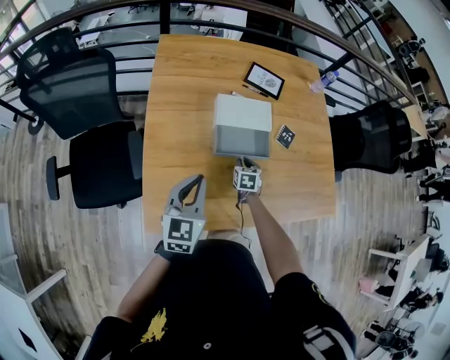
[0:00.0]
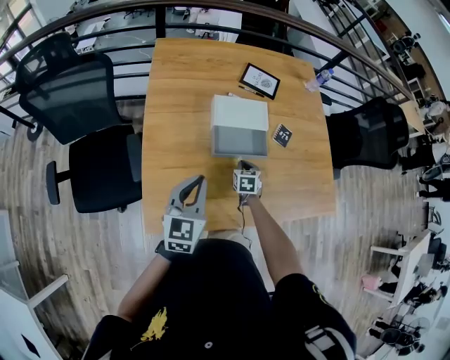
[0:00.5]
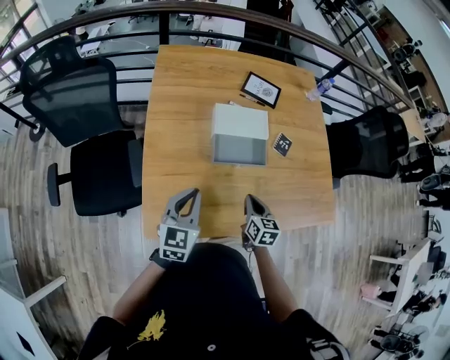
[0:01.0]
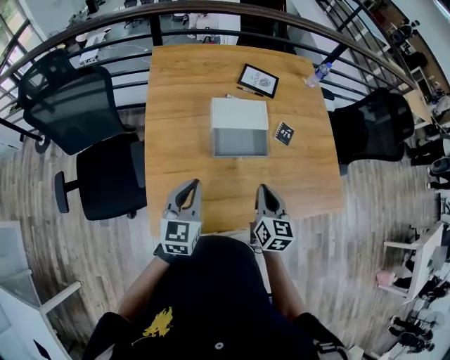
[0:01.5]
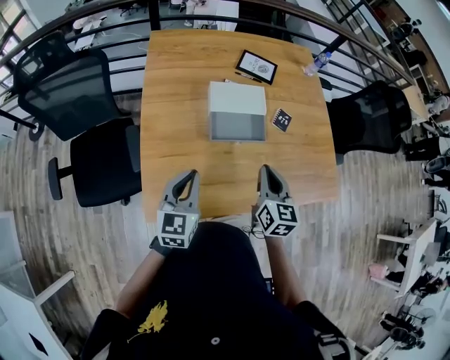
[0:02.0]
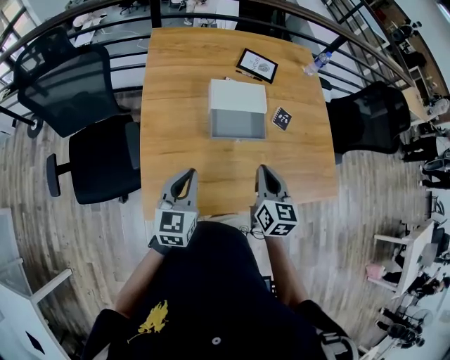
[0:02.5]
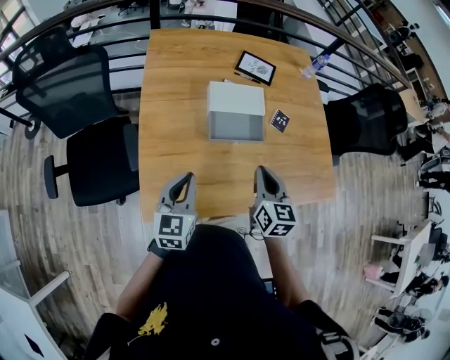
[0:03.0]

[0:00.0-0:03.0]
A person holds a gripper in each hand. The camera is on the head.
0.0 to 1.5 s: The right gripper goes about 25 cm upward and backward, and turns by about 30 degrees.
1.5 to 3.0 s: The grippers make only small movements.

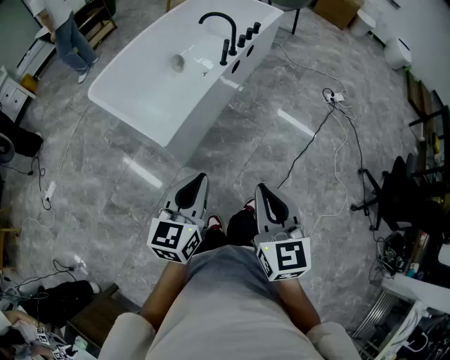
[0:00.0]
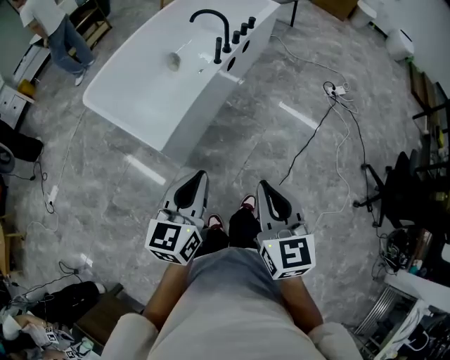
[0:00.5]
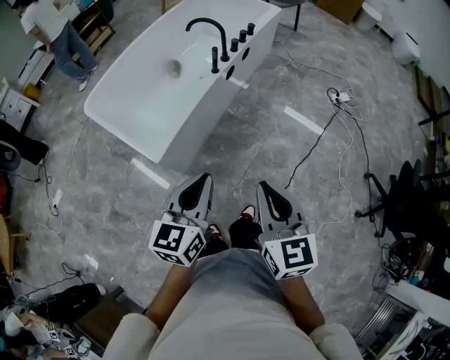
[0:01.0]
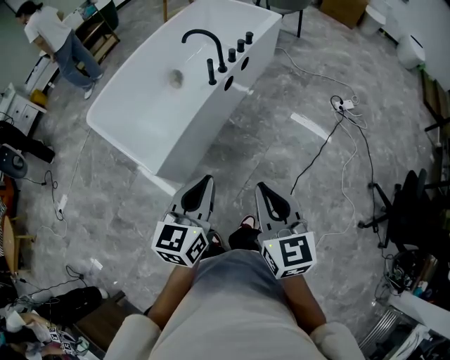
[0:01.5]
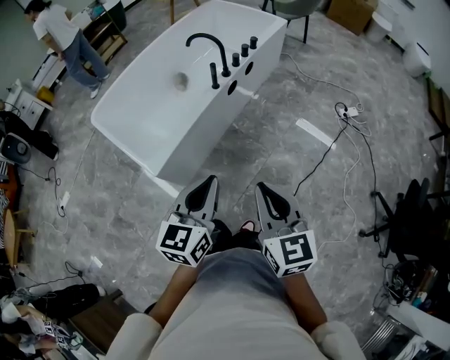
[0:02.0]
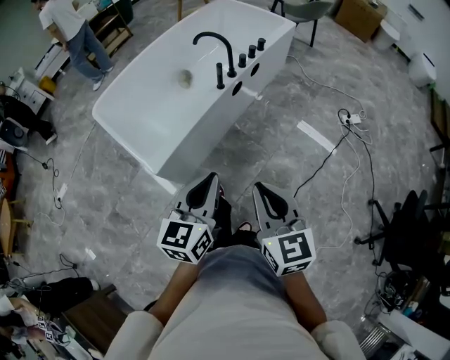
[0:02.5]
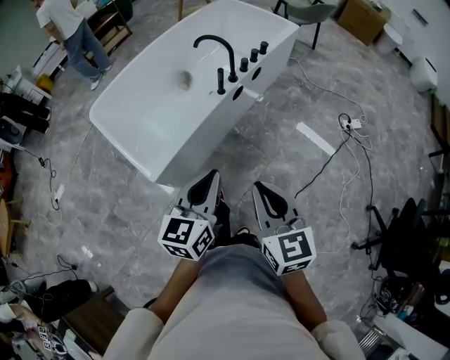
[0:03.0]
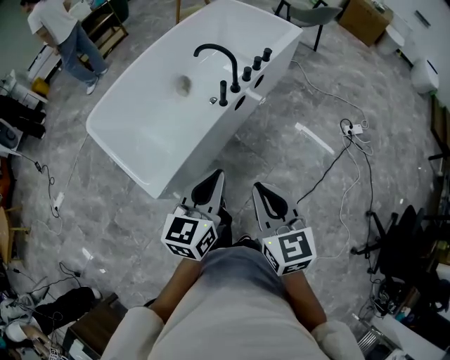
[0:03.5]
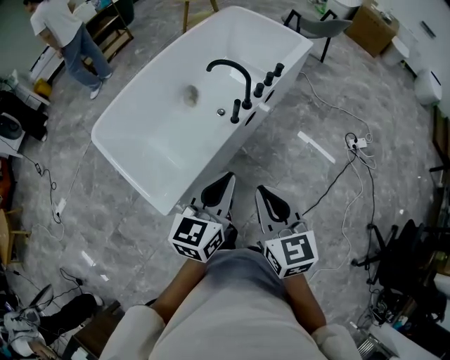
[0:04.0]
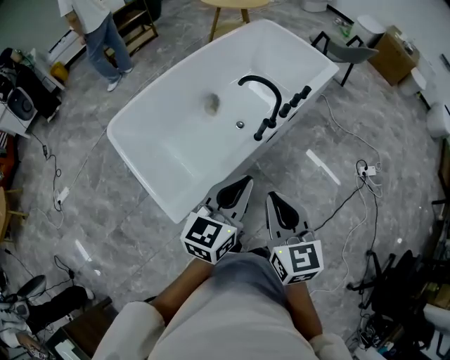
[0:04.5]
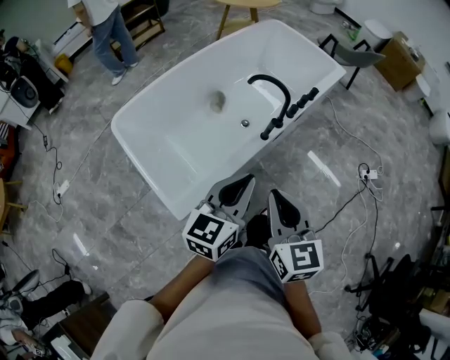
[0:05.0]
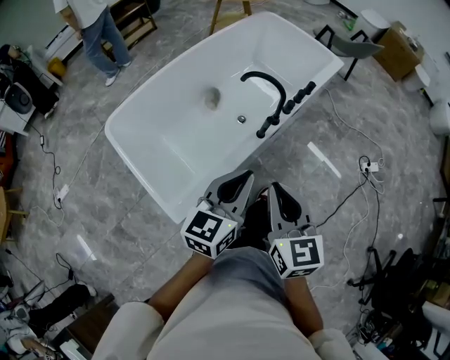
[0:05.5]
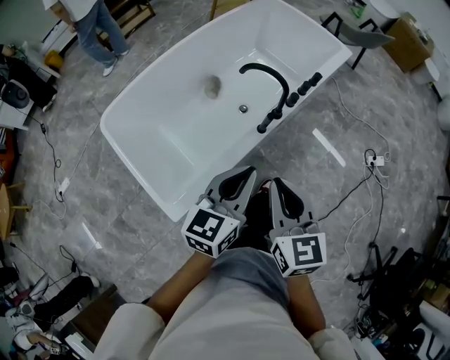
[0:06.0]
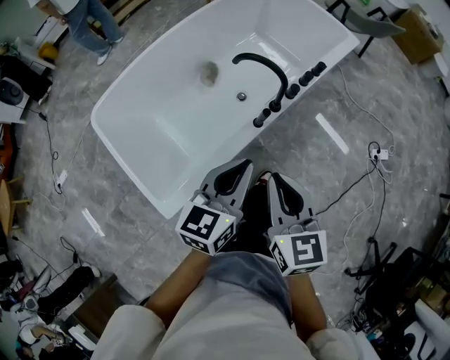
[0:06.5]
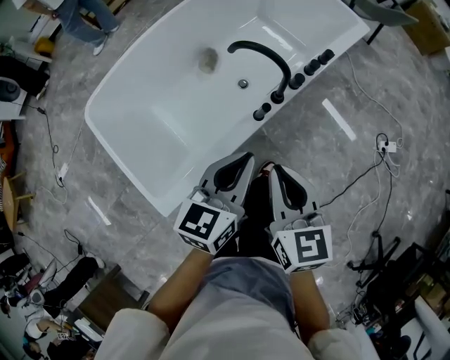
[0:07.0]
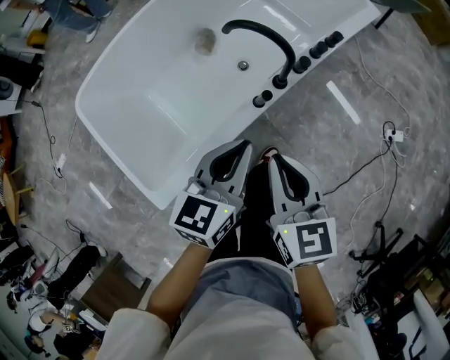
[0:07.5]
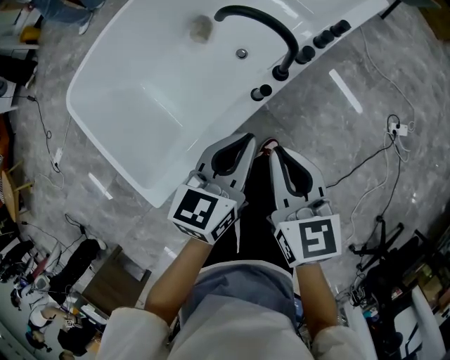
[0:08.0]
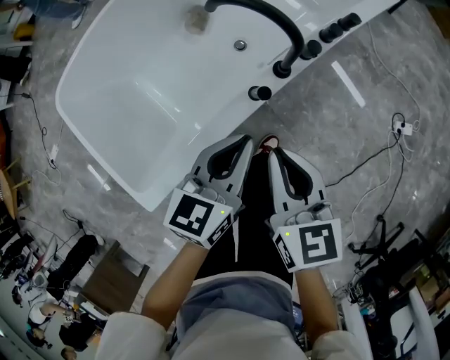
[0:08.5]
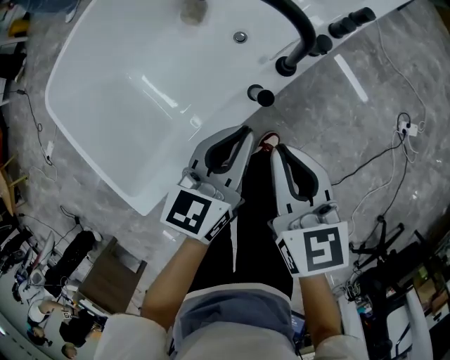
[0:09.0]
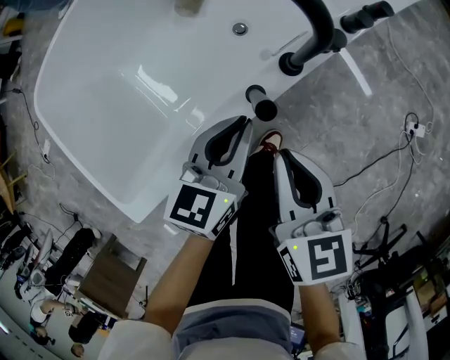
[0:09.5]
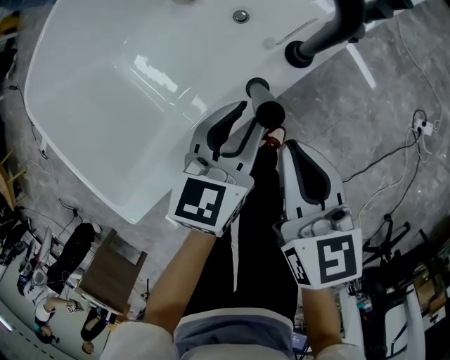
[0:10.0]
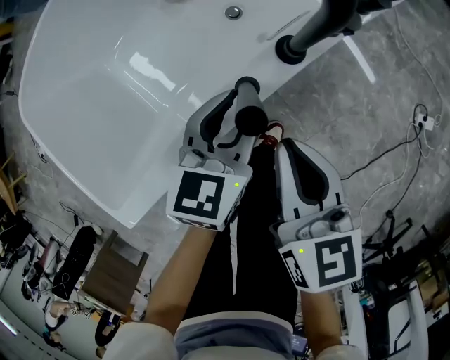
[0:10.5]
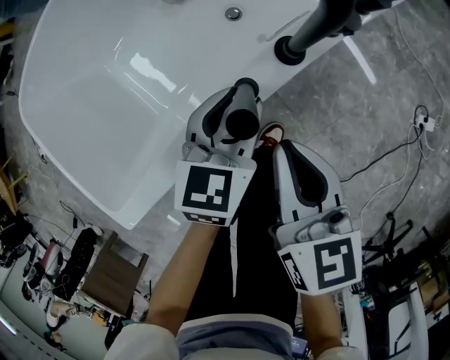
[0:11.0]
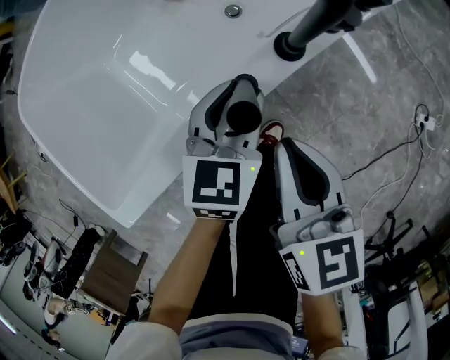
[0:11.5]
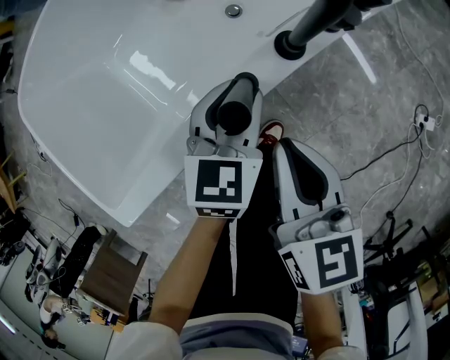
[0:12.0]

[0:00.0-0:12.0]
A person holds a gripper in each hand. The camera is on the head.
0.0 to 2.0 s: Both grippers travel together forward and to the right, approximately 20 cm.
2.0 to 4.0 s: The grippers both shift forward by roughly 25 cm.
4.0 to 6.0 s: The right gripper goes some 15 cm forward and to the left. Meanwhile the left gripper travels forward by about 10 cm.
6.0 to 8.0 s: Both grippers move downward and forward, approximately 20 cm.
8.0 to 10.0 s: Both grippers travel together downward, about 20 cm. The left gripper opens.
10.0 to 12.0 s: There are only small adjustments of the grippers.

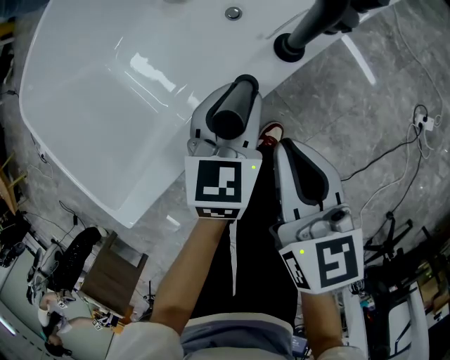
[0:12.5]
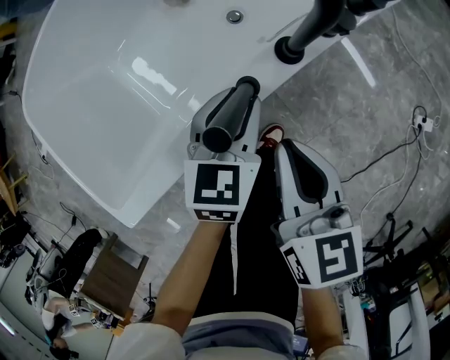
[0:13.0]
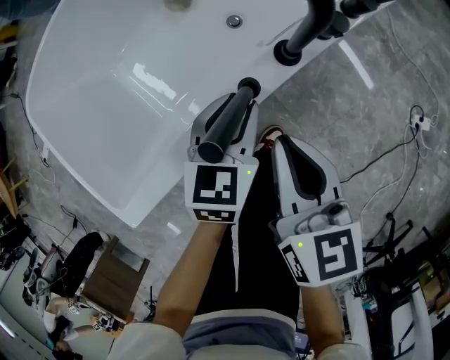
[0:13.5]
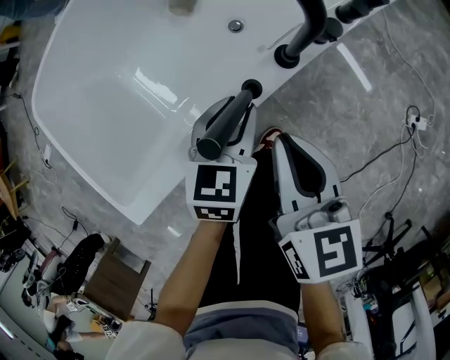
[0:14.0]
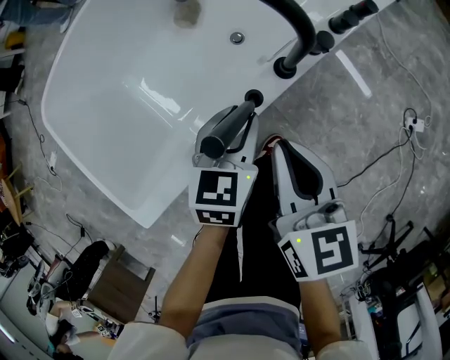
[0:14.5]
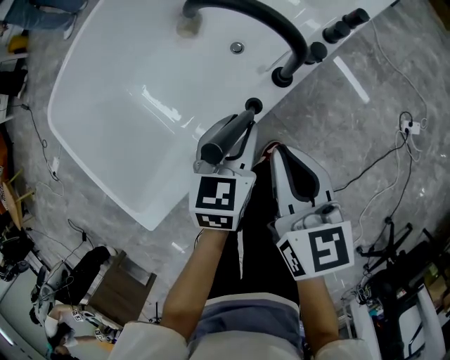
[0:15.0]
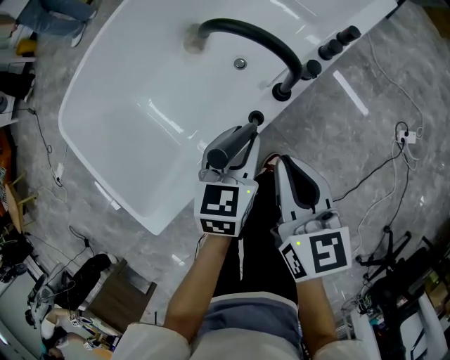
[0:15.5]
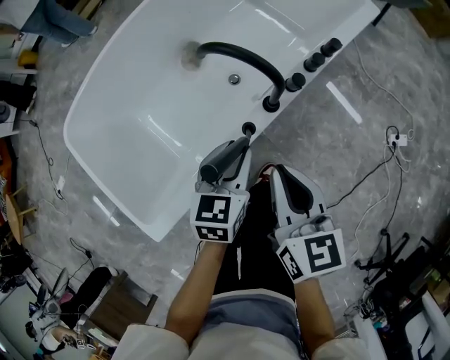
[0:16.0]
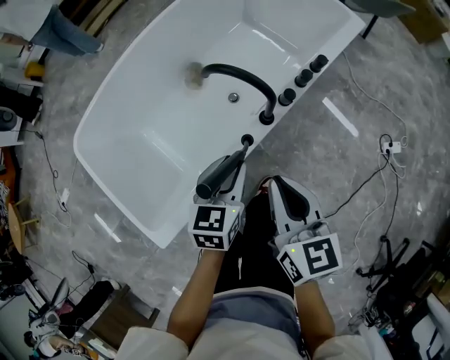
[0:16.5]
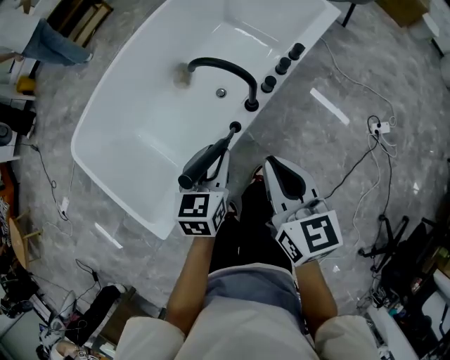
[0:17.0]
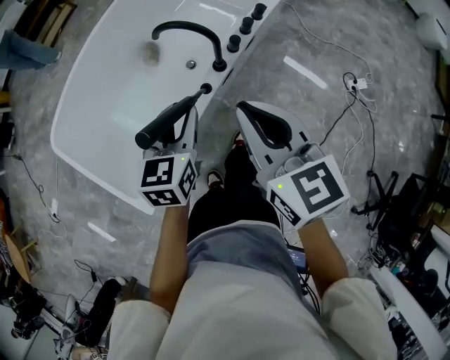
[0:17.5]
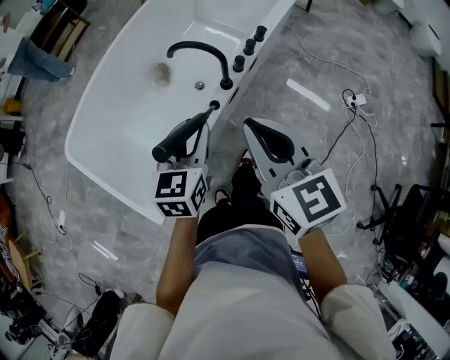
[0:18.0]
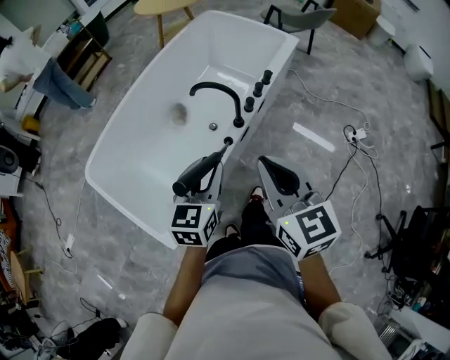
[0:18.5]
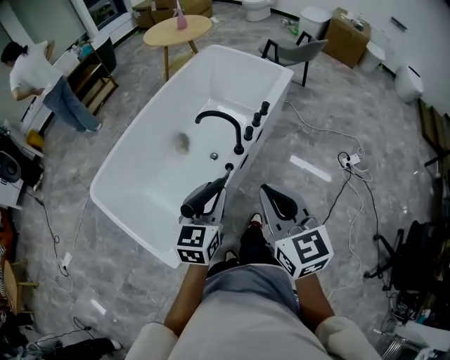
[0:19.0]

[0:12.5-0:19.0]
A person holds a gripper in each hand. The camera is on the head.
12.5 to 14.5 s: The grippers both shift upward by roughly 10 cm.
14.5 to 17.0 s: Both grippers travel together upward, roughly 20 cm.
17.0 to 19.0 s: The two grippers go roughly 20 cm upward and backward.

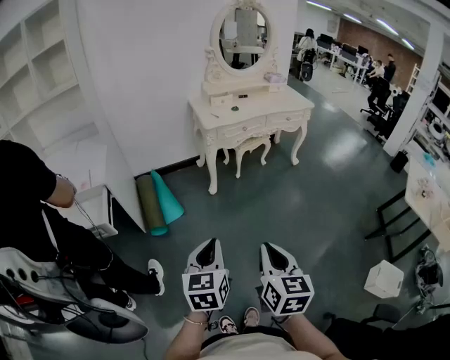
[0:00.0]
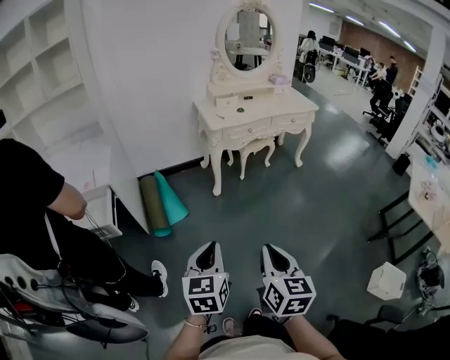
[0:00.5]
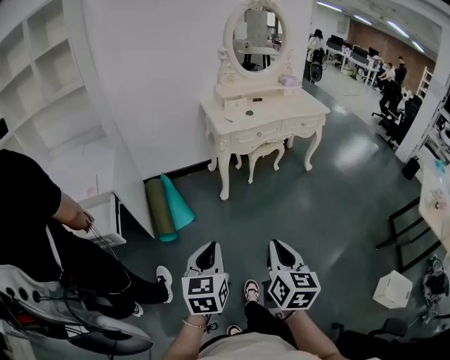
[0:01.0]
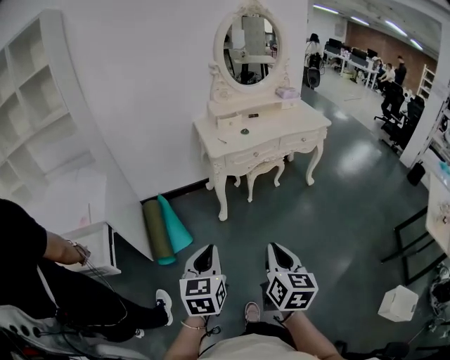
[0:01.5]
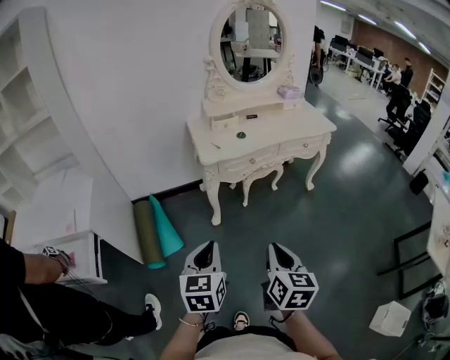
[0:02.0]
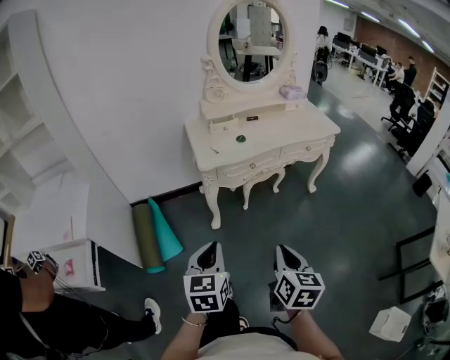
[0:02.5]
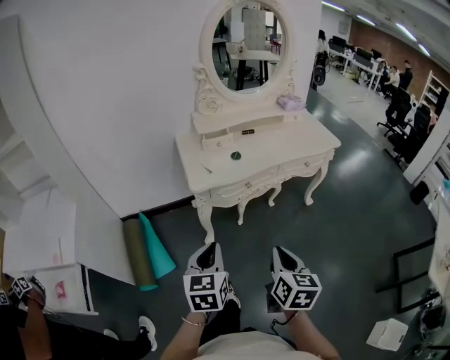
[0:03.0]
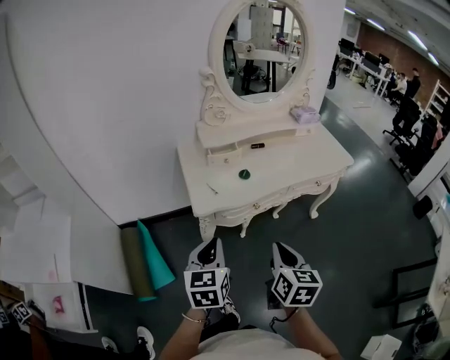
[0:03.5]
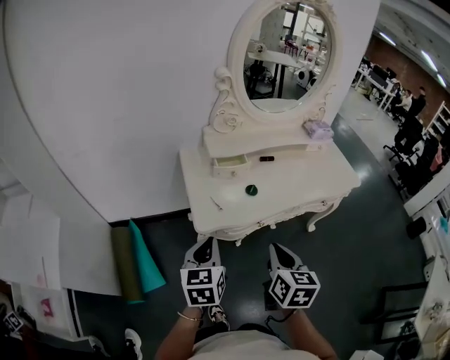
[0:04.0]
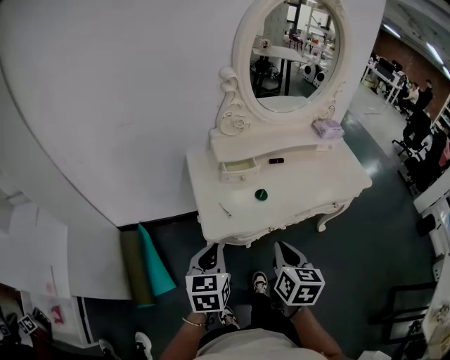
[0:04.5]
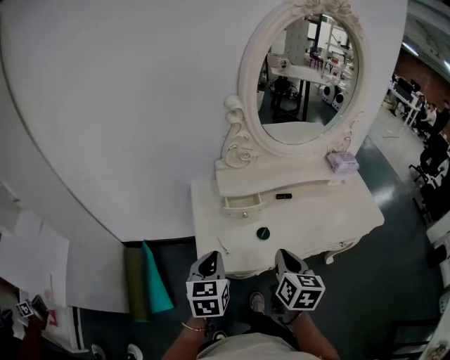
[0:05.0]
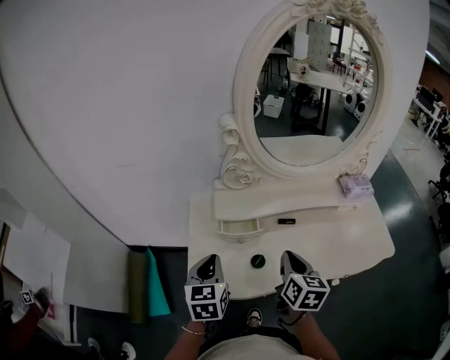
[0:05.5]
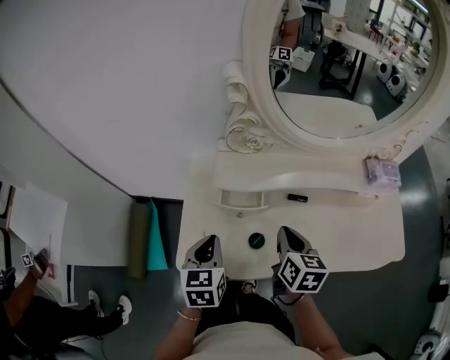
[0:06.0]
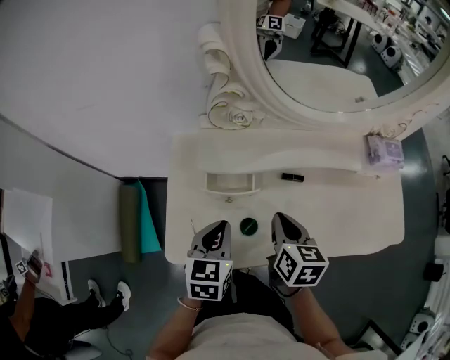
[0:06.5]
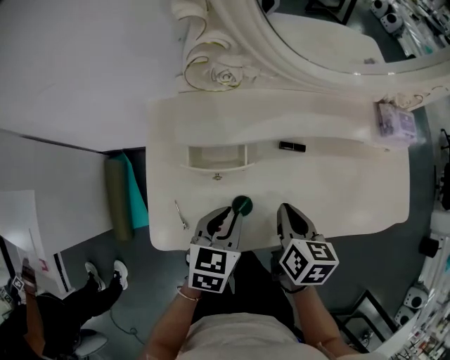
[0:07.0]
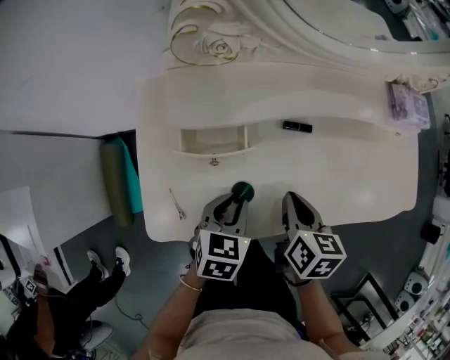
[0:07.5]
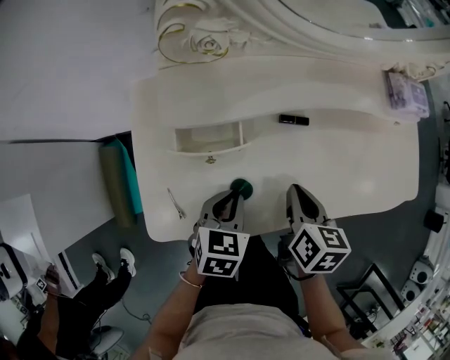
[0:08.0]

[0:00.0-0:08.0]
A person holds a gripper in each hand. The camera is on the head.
0.0 to 2.0 s: The two grippers go some 30 cm forward.
2.0 to 4.0 s: The pair of grippers is taken forward, approximately 40 cm.
4.0 to 6.0 s: The grippers both shift forward by about 30 cm. The left gripper changes its angle by about 20 degrees. The right gripper swivels roughly 20 degrees.
6.0 to 8.0 s: The left gripper is displaced downward and to the right by some 15 cm, and rotates about 30 degrees. Meanwhile the right gripper heads downward and to the right, covering about 10 cm.
